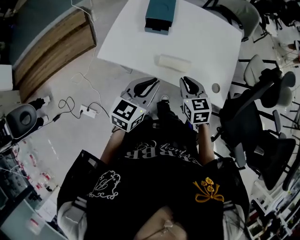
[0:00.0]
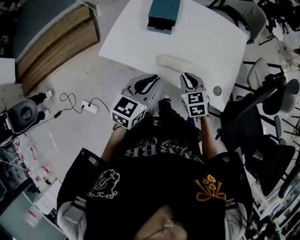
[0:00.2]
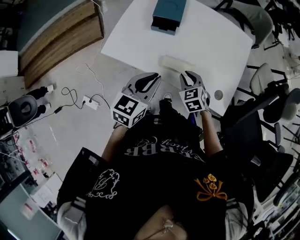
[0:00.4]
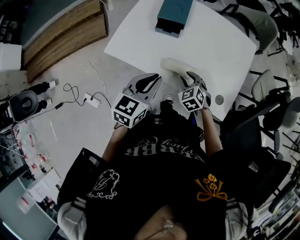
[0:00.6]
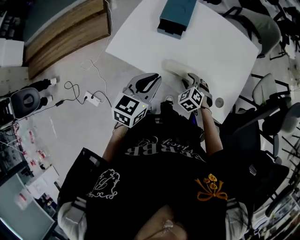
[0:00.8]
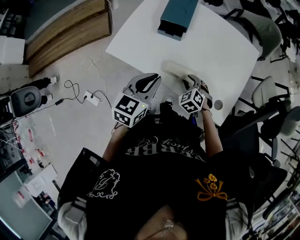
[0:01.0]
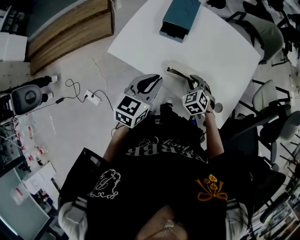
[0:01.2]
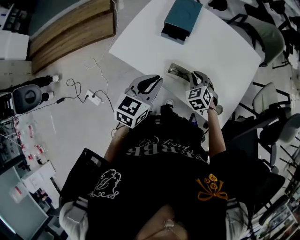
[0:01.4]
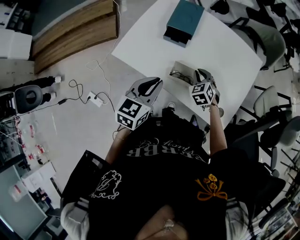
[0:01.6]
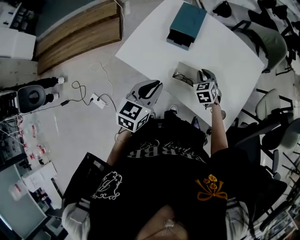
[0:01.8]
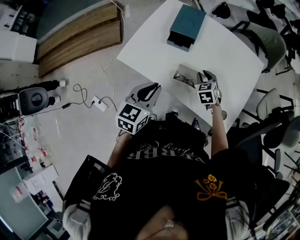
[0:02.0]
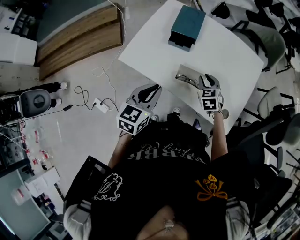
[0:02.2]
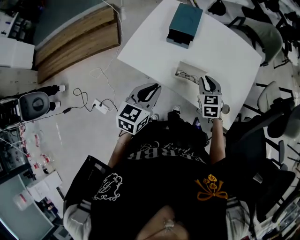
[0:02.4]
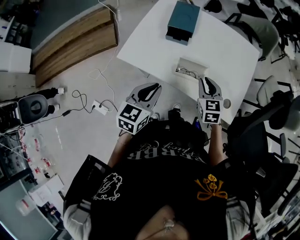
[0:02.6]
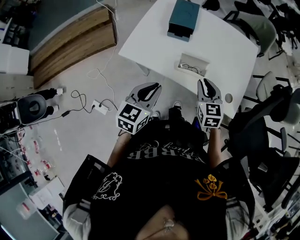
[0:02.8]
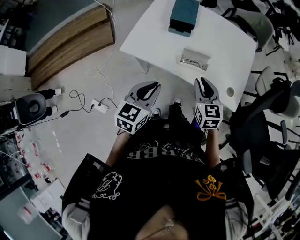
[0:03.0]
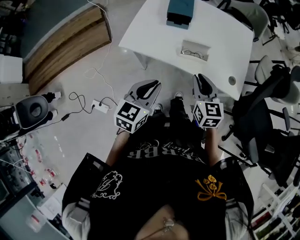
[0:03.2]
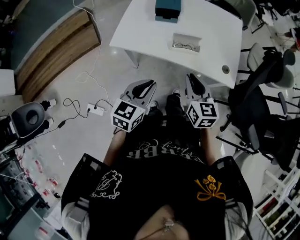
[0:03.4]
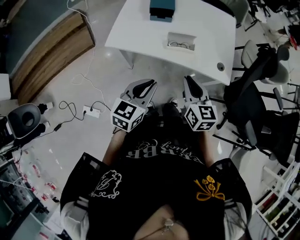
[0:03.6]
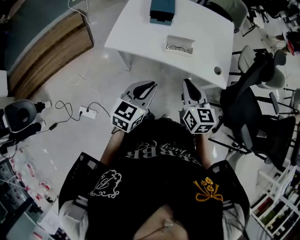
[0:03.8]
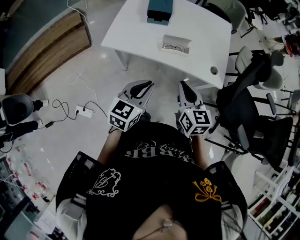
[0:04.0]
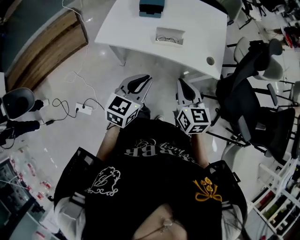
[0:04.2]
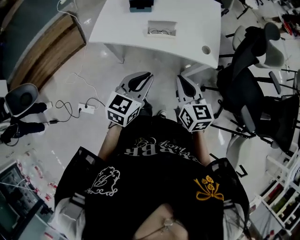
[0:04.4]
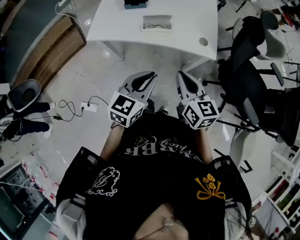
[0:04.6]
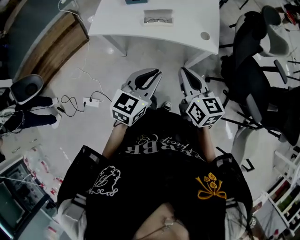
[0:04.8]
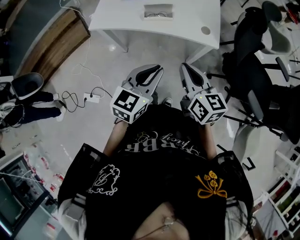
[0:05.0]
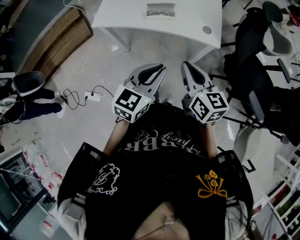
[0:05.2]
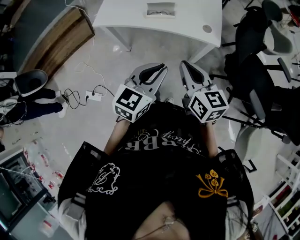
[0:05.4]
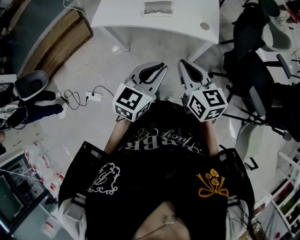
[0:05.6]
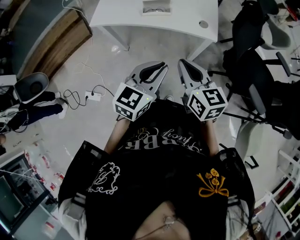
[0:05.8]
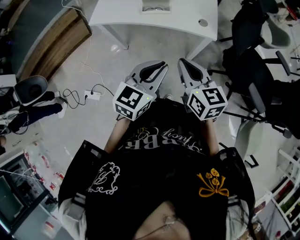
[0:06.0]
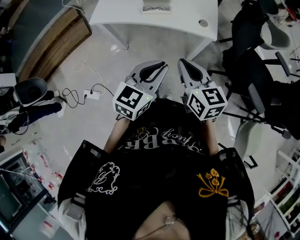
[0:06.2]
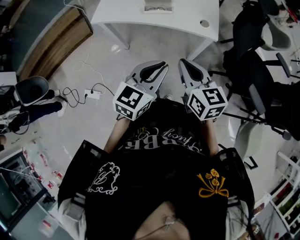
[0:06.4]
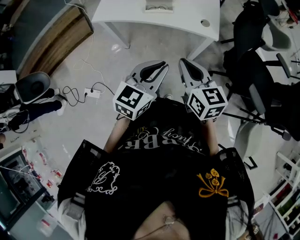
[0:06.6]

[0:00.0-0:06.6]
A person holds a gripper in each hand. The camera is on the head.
0.0 to 1.6 s: The right gripper heads forward and downward, covering approximately 20 cm, rotates roughly 30 degrees, and opens, then closes once more; the left gripper travels forward by some 5 cm.
1.6 to 3.2 s: The left gripper heads backward and to the left, covering about 20 cm; the right gripper heads backward and upward, covering some 25 cm, and changes its angle by approximately 40 degrees.
3.2 to 5.0 s: The right gripper shifts about 25 cm backward and to the right, and turns by some 20 degrees, while the left gripper travels to the right and backward by some 25 cm.
5.0 to 6.6 s: Both grippers travel together backward, approximately 5 cm.

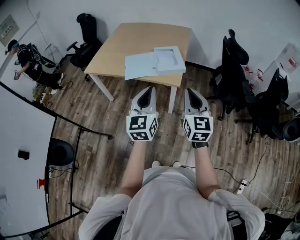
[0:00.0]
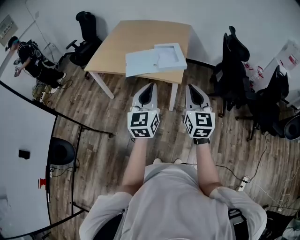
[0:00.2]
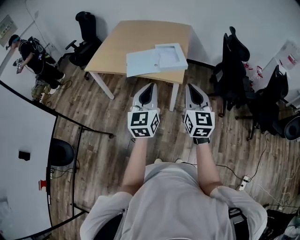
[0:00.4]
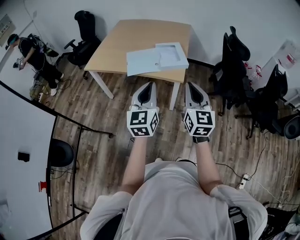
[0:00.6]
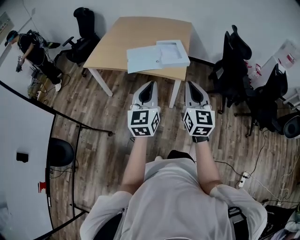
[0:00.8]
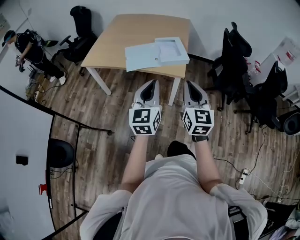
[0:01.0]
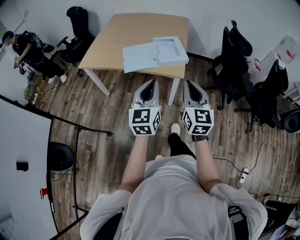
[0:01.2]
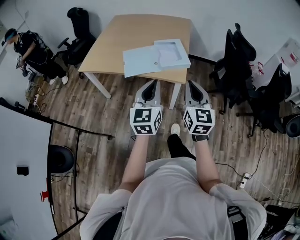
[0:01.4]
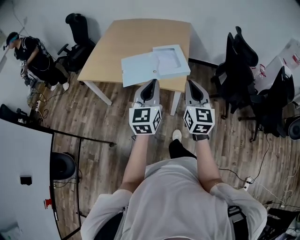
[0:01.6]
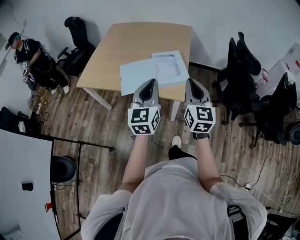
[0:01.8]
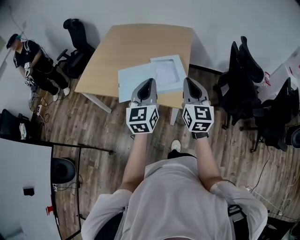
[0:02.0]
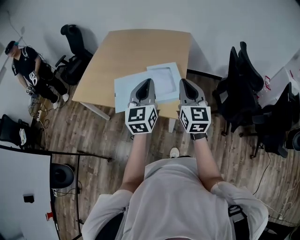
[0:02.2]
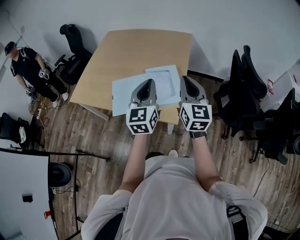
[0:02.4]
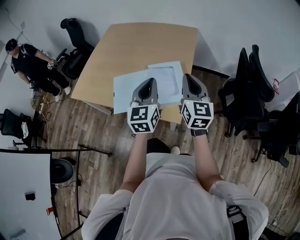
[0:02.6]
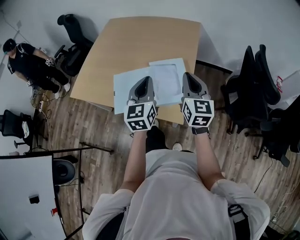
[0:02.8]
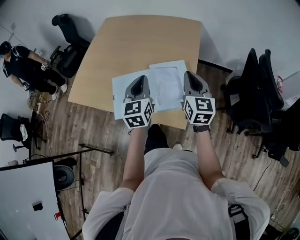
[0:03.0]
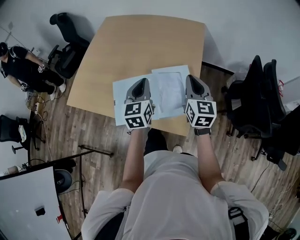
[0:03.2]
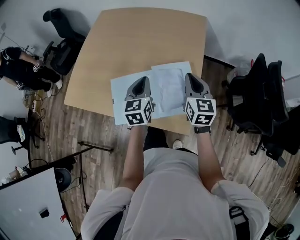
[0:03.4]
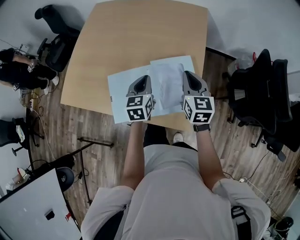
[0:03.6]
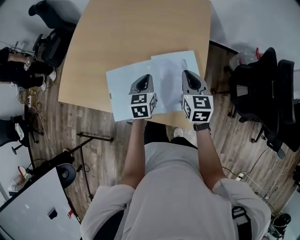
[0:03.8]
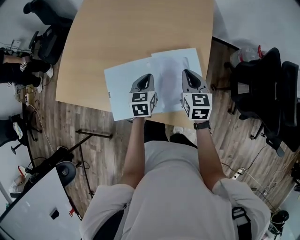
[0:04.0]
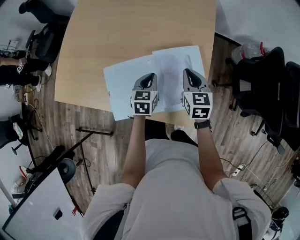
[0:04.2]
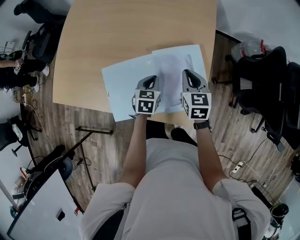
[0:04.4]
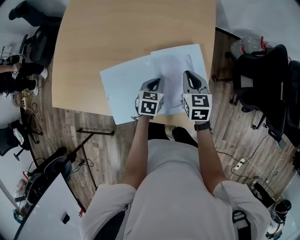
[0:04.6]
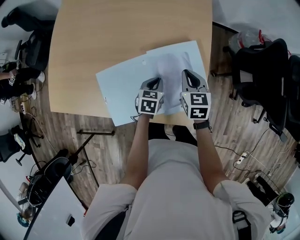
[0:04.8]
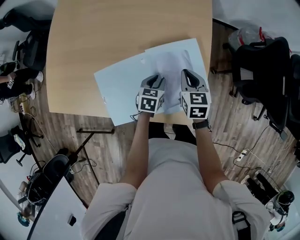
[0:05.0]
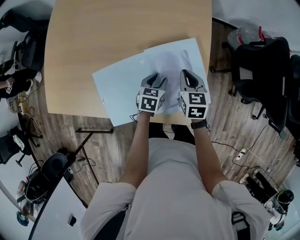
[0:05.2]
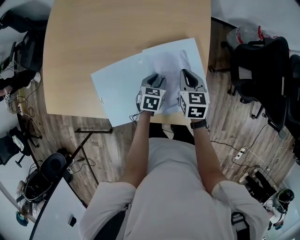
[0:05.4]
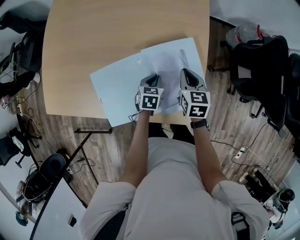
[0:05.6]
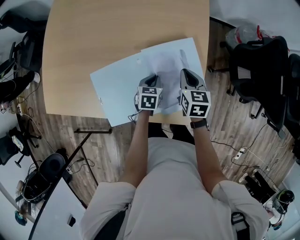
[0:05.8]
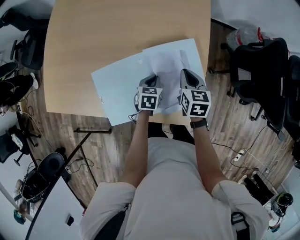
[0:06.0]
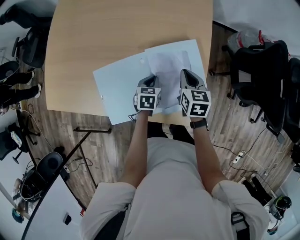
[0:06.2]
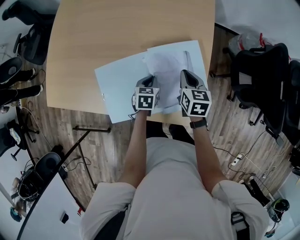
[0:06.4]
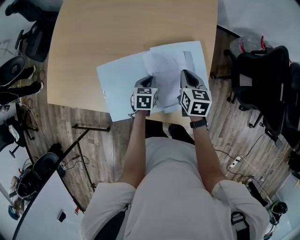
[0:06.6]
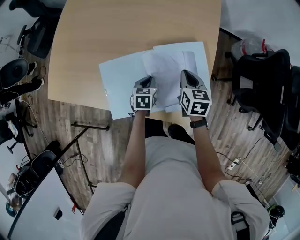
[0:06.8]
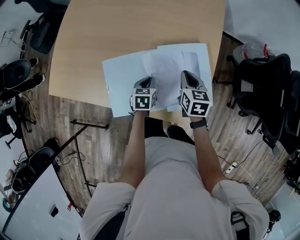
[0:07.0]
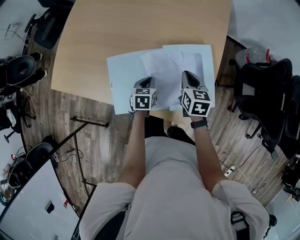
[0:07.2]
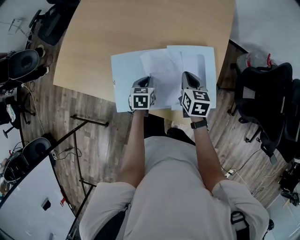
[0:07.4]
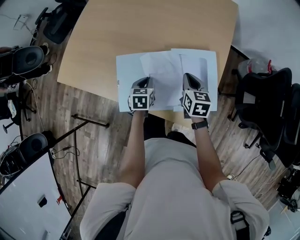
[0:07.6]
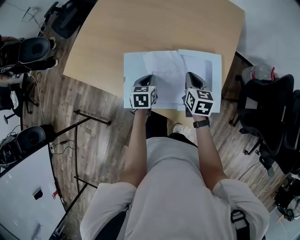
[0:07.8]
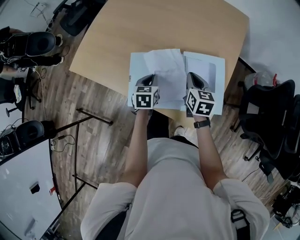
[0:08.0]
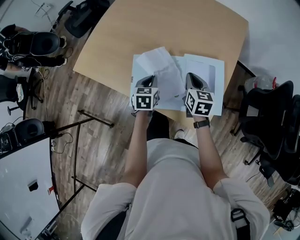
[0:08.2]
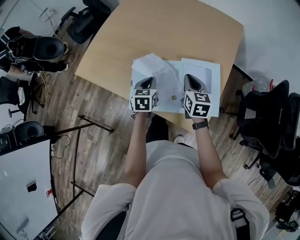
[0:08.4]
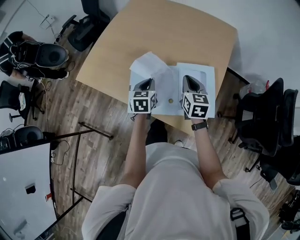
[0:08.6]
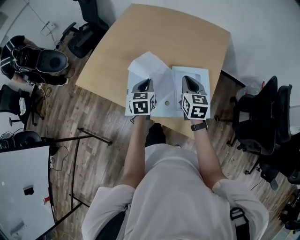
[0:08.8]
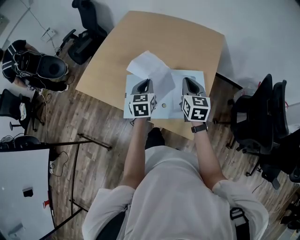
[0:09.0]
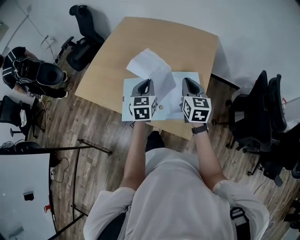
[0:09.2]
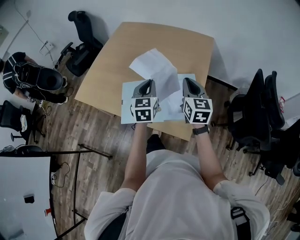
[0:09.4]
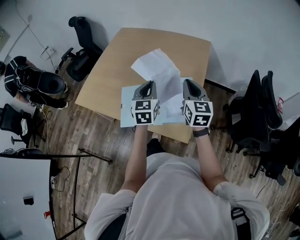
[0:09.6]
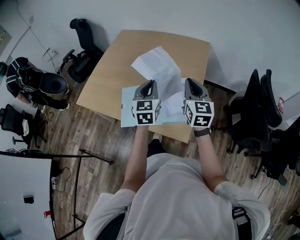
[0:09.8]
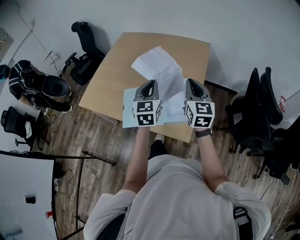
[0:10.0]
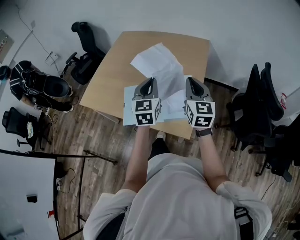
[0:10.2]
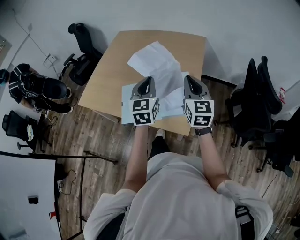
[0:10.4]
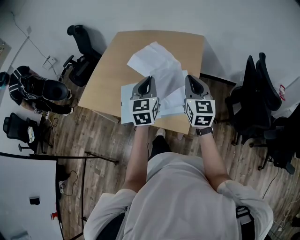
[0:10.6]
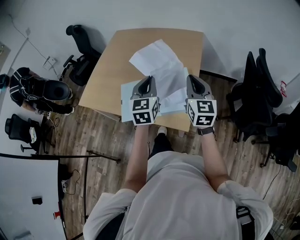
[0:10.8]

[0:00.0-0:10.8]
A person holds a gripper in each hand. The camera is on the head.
0.0 to 1.6 s: The grippers both shift forward by approximately 15 cm.
1.6 to 3.0 s: The two grippers go roughly 40 cm forward.
3.0 to 4.6 s: The right gripper heads downward and forward, covering roughly 25 cm, and rotates some 30 degrees; the left gripper shifts about 30 cm downward, and tilts its fingers about 40 degrees downward.
4.6 to 6.2 s: The left gripper opens, then closes once more.
6.2 to 7.8 s: The left gripper travels to the left and upward by roughly 15 cm, and rotates approximately 20 degrees; the right gripper shifts approximately 10 cm to the left.
7.8 to 9.2 s: The two grippers go about 20 cm upward. The left gripper rotates some 30 degrees. Meanwhile the right gripper rotates roughly 20 degrees.
9.2 to 10.8 s: The left gripper heads upward, to the right and backward, covering about 15 cm, while the right gripper shifts roughly 15 cm backward, to the right and upward.

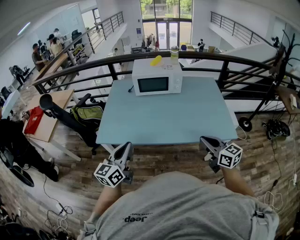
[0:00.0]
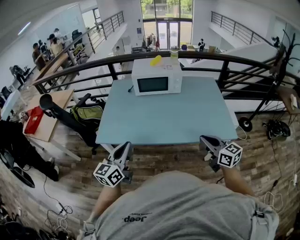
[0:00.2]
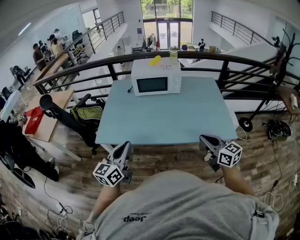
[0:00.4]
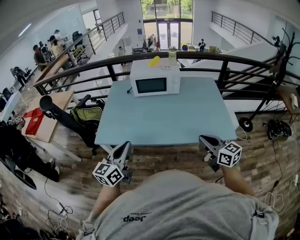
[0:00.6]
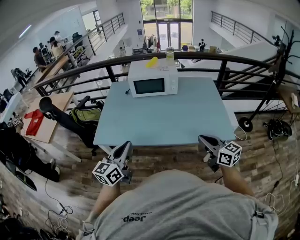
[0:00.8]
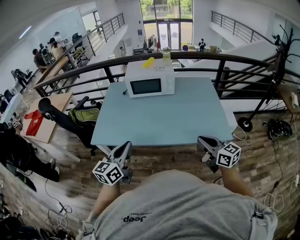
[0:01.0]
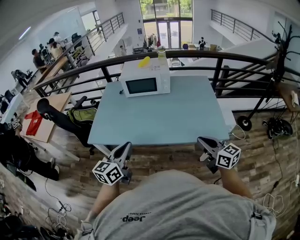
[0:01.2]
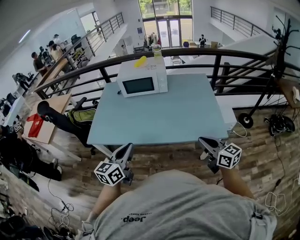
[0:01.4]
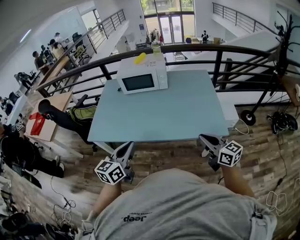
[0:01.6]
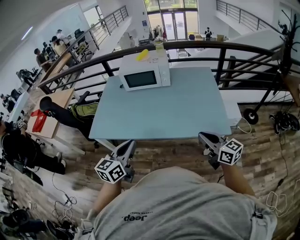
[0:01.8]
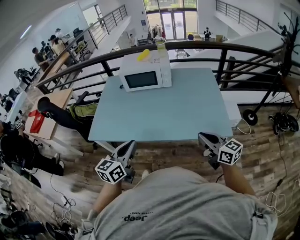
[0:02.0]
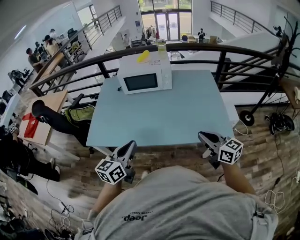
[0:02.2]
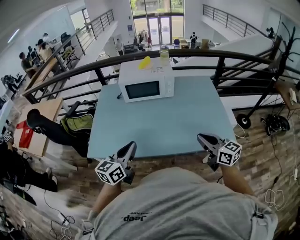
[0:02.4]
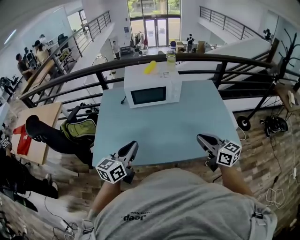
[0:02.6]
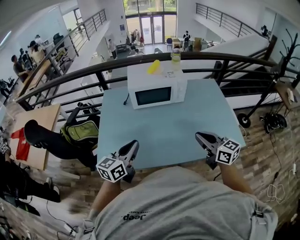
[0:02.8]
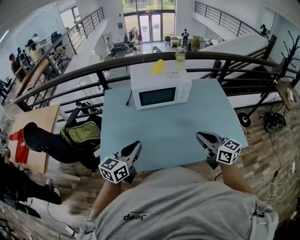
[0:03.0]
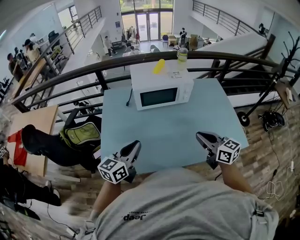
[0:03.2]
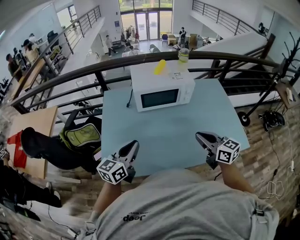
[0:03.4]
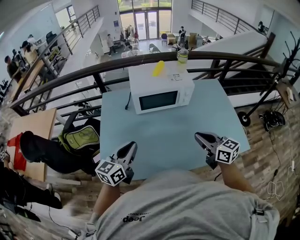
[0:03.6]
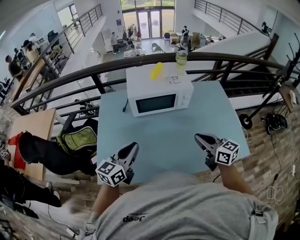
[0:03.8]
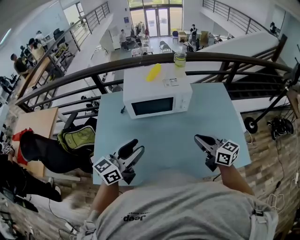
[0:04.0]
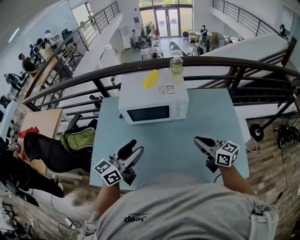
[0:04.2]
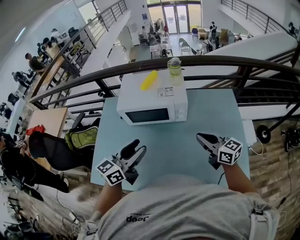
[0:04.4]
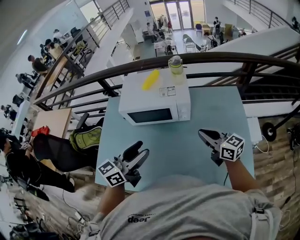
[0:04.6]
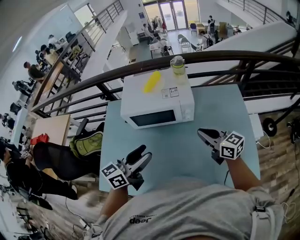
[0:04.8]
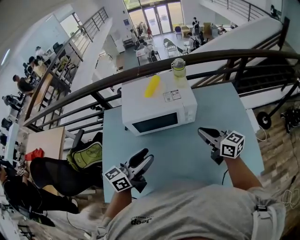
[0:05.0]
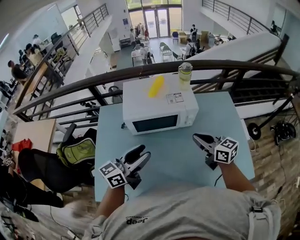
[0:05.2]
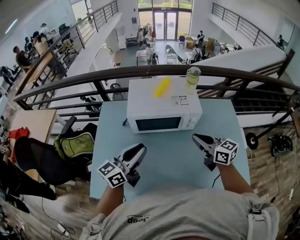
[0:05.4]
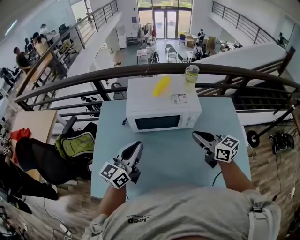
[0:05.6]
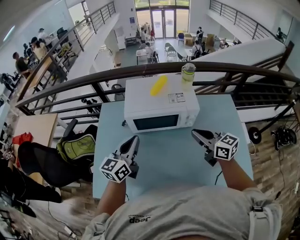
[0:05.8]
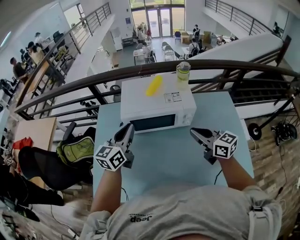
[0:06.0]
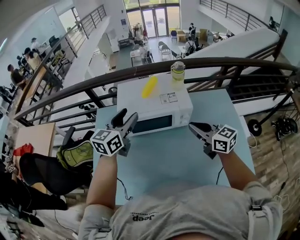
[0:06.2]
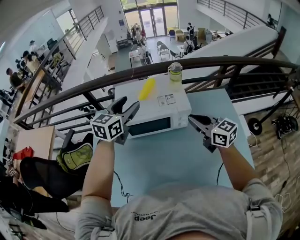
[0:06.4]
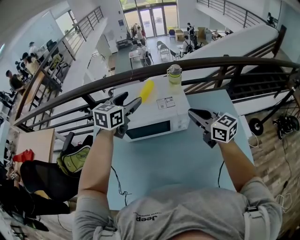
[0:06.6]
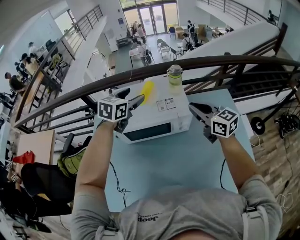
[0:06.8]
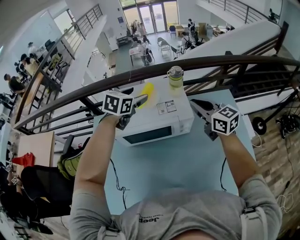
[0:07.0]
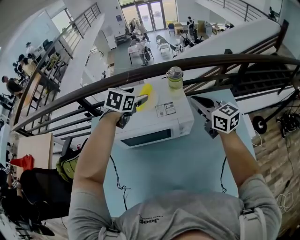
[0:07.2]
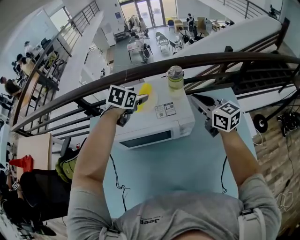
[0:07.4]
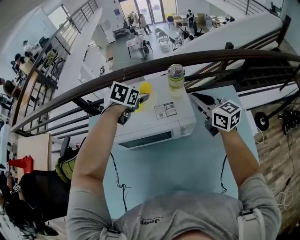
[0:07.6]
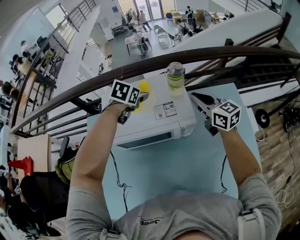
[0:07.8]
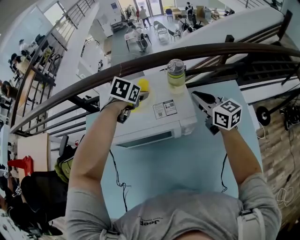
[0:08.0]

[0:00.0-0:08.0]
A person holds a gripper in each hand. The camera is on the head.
0.0 to 1.6 s: The two grippers go about 15 cm to the right.
1.6 to 3.2 s: The left gripper shifts roughly 35 cm forward and to the left. The right gripper moves to the left and forward, some 35 cm.
3.2 to 4.8 s: The left gripper goes some 25 cm to the right and forward, and opens its fingers; the right gripper goes some 25 cm forward and to the right.
4.8 to 6.4 s: The left gripper travels forward by some 25 cm, rotates approximately 30 degrees, and closes, then reopens; the right gripper shifts approximately 10 cm forward and upward.
6.4 to 8.0 s: The left gripper heads forward and downward, covering approximately 25 cm, and tips its fingers downward by about 40 degrees. The right gripper goes roughly 20 cm forward.
